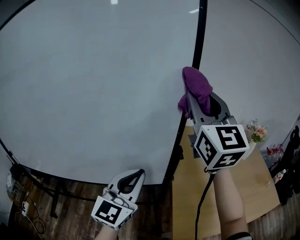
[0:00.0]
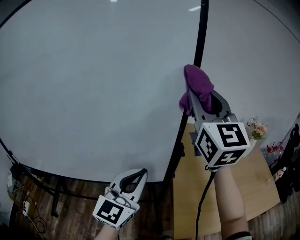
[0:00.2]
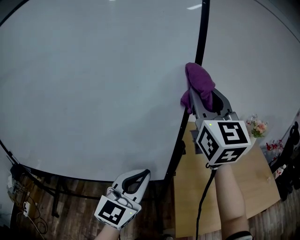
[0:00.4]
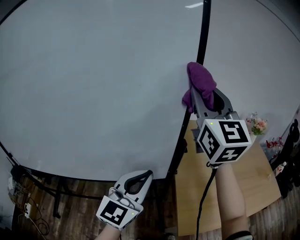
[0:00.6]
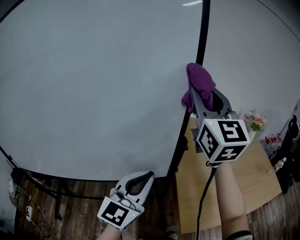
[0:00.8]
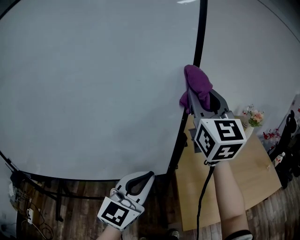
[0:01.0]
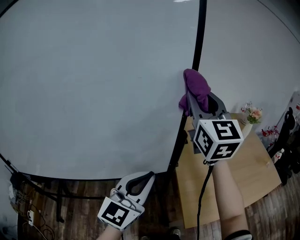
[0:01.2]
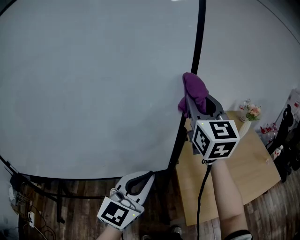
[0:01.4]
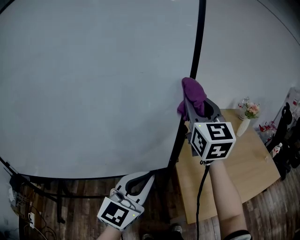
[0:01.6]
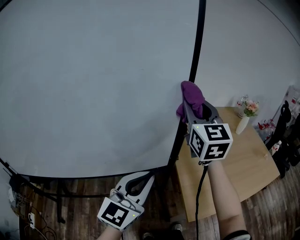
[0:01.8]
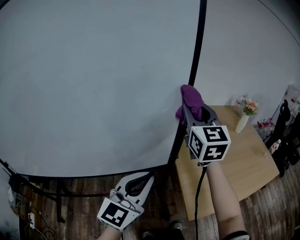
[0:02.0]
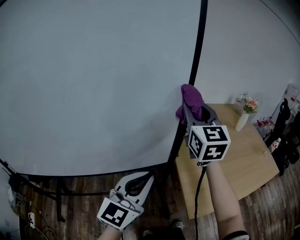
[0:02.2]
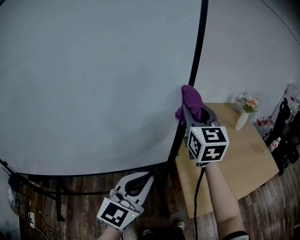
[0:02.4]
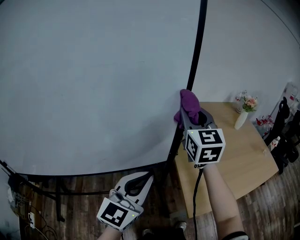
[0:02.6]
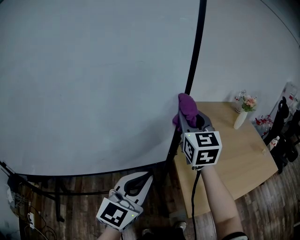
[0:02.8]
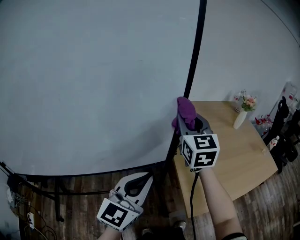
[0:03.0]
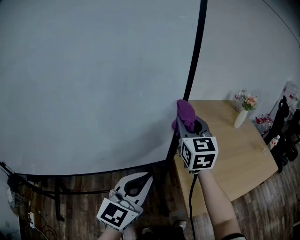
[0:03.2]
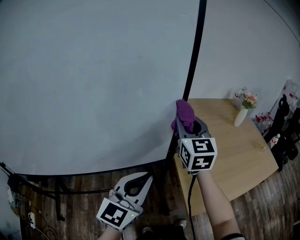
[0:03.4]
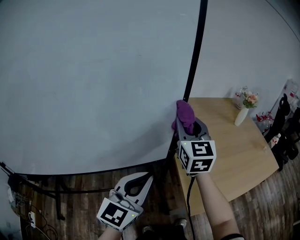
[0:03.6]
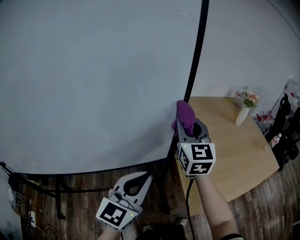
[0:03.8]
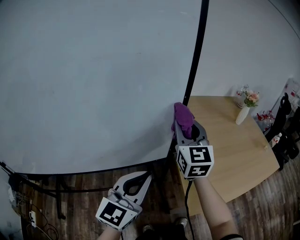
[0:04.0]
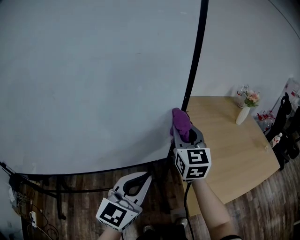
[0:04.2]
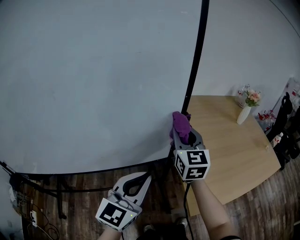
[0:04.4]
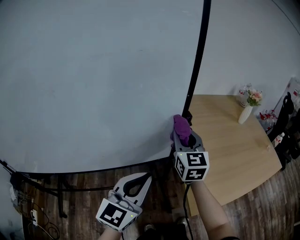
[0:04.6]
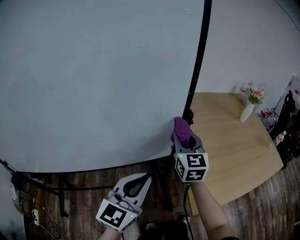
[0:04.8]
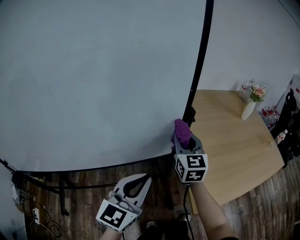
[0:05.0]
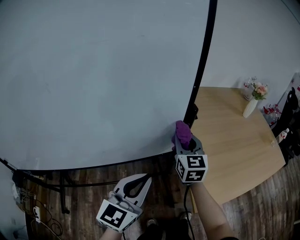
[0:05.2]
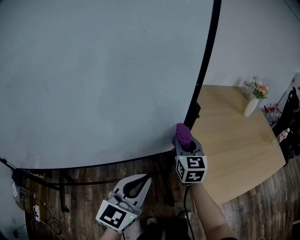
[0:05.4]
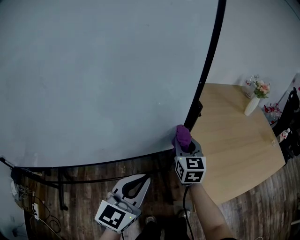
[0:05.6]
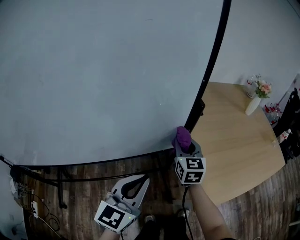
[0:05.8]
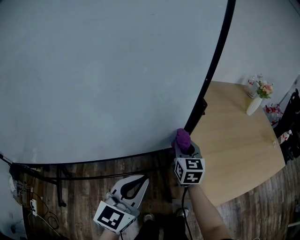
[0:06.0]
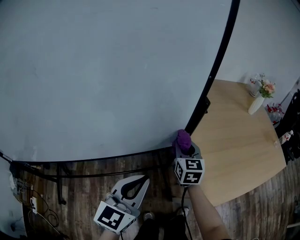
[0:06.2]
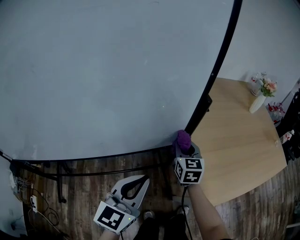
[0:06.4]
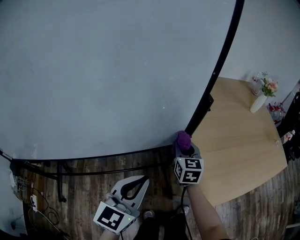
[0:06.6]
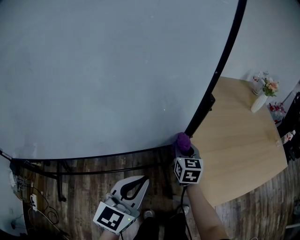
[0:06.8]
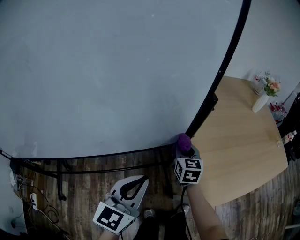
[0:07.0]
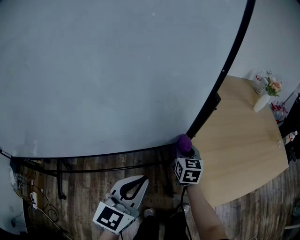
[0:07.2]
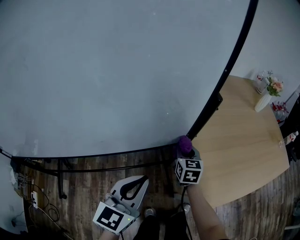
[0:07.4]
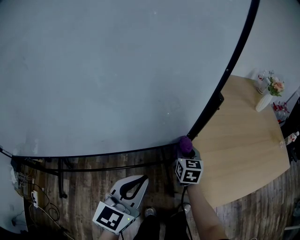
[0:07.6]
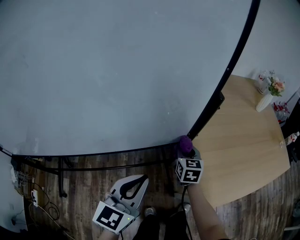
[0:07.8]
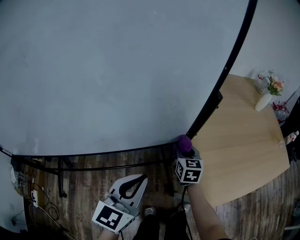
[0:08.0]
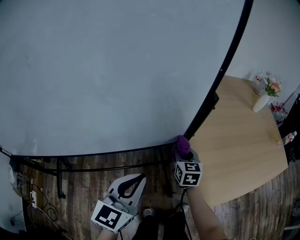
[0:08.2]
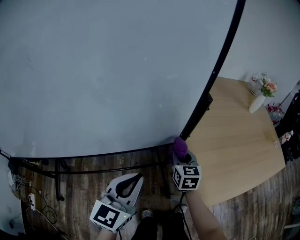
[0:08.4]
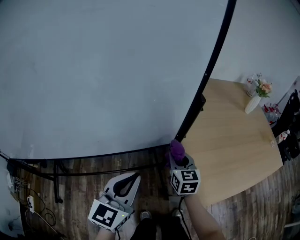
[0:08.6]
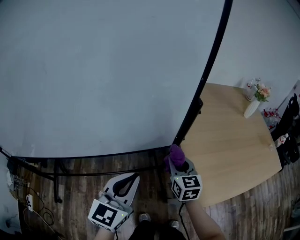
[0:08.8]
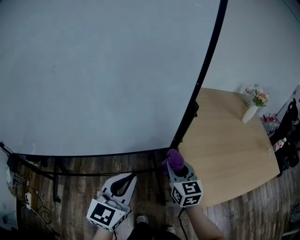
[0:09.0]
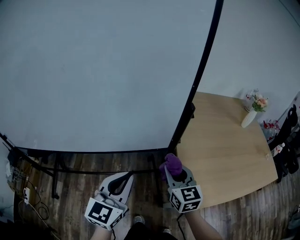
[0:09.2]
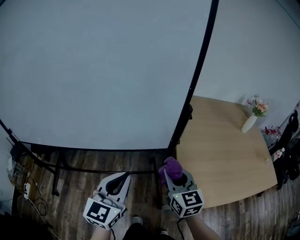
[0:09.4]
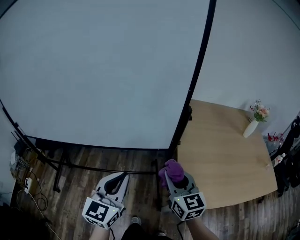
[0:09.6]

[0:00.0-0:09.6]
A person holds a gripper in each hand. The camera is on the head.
0:00.0 to 0:01.6: The left gripper ends up about 5 cm from where it was. The right gripper is displaced downward by approximately 10 cm.
0:01.6 to 0:03.2: The right gripper shifts about 10 cm downward.
0:03.2 to 0:04.8: The right gripper is displaced downward by roughly 10 cm.
0:04.8 to 0:06.4: The left gripper shifts some 5 cm downward. The right gripper is displaced downward by about 15 cm.
0:06.4 to 0:08.0: The right gripper travels downward by some 5 cm.
0:08.0 to 0:09.6: The right gripper goes roughly 30 cm backward and upward, and changes its angle by about 30 degrees, while the left gripper is displaced backward and upward by about 15 cm, and changes its angle by approximately 20 degrees.

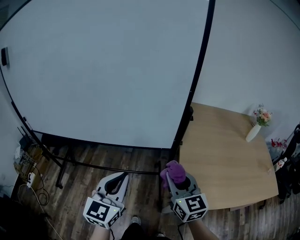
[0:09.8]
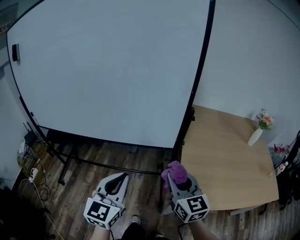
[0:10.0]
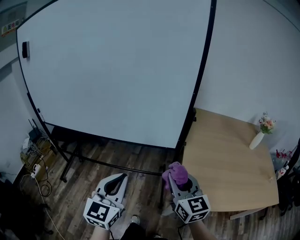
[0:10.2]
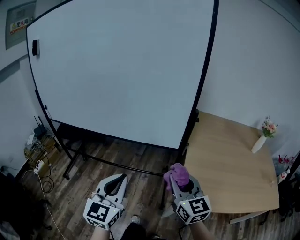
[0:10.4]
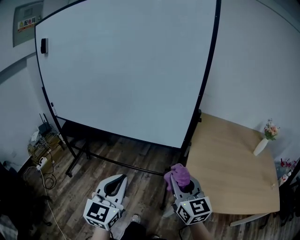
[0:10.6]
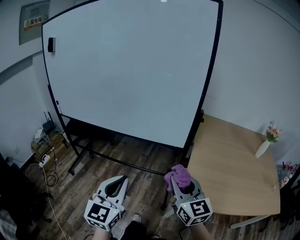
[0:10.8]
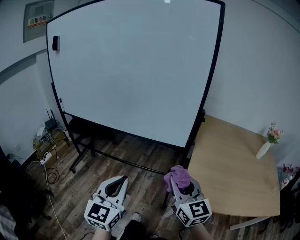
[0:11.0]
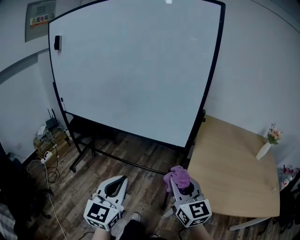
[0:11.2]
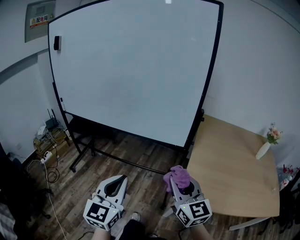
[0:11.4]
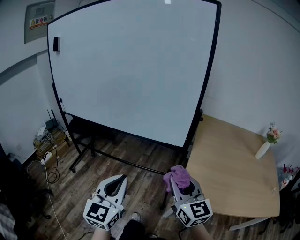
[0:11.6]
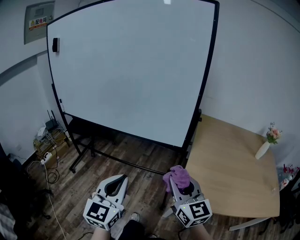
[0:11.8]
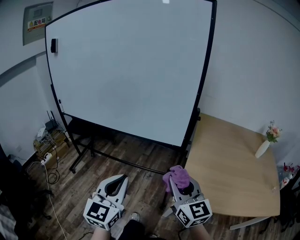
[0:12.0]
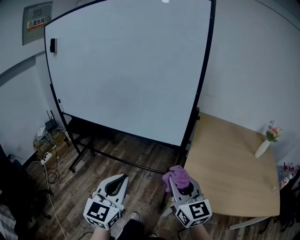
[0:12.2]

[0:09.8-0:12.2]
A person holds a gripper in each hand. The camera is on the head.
0:09.8 to 0:11.0: The grippers both shift backward by about 15 cm.
0:11.0 to 0:12.2: The grippers move only a little.

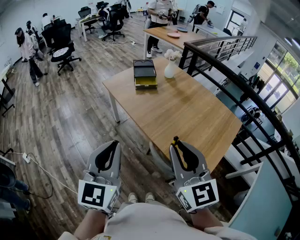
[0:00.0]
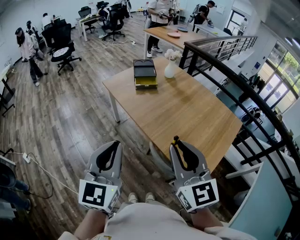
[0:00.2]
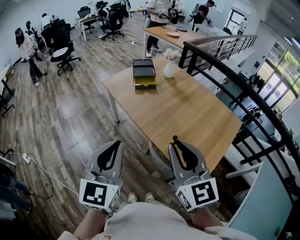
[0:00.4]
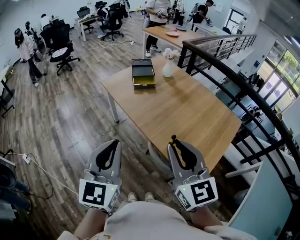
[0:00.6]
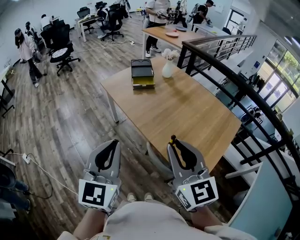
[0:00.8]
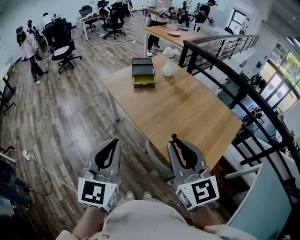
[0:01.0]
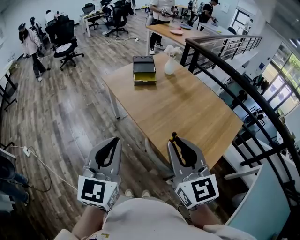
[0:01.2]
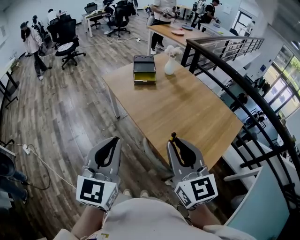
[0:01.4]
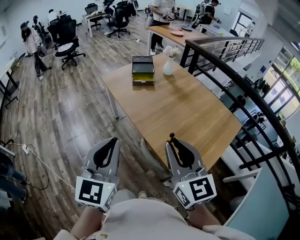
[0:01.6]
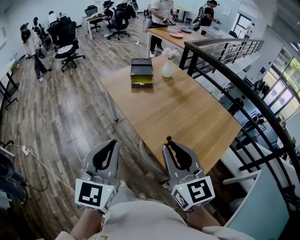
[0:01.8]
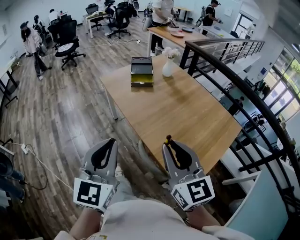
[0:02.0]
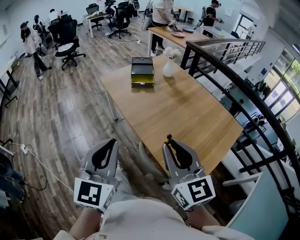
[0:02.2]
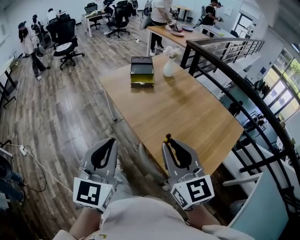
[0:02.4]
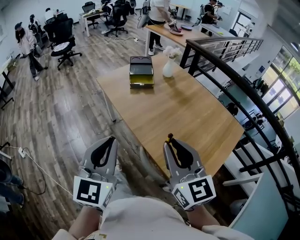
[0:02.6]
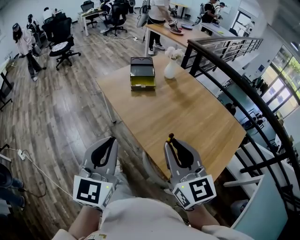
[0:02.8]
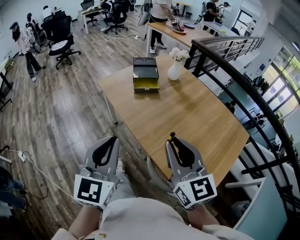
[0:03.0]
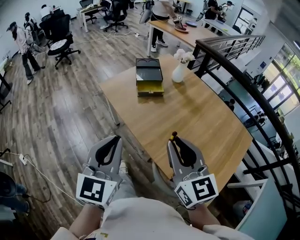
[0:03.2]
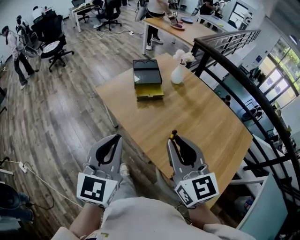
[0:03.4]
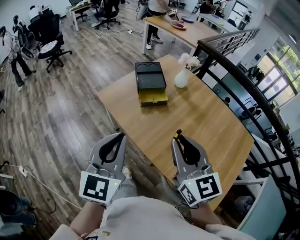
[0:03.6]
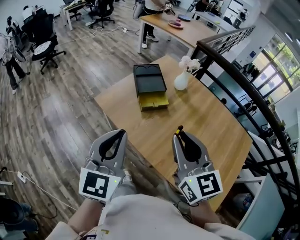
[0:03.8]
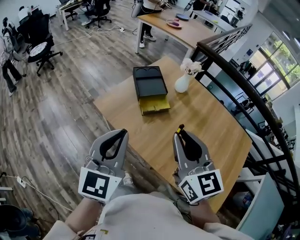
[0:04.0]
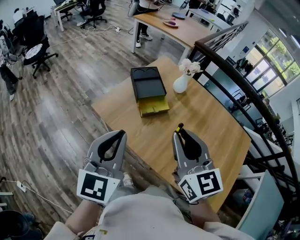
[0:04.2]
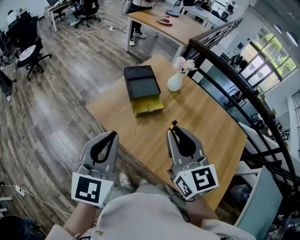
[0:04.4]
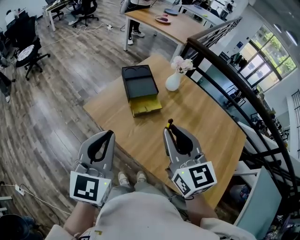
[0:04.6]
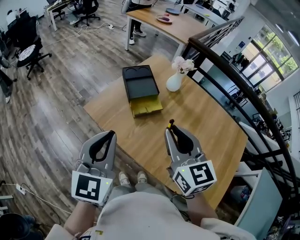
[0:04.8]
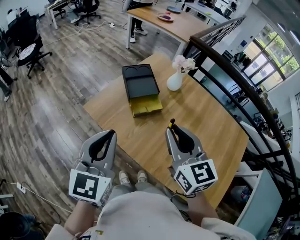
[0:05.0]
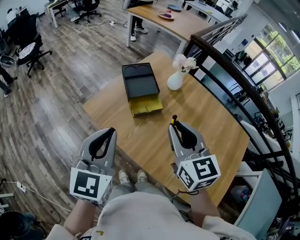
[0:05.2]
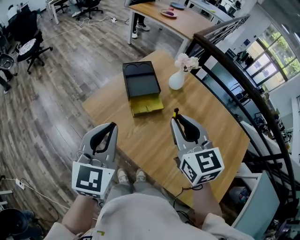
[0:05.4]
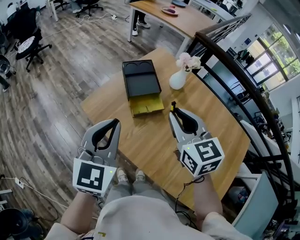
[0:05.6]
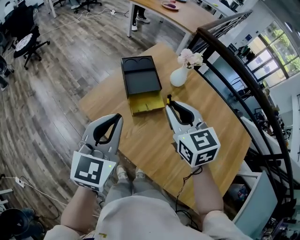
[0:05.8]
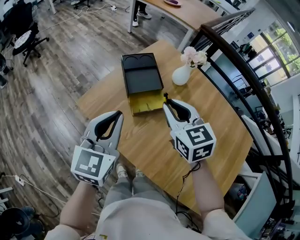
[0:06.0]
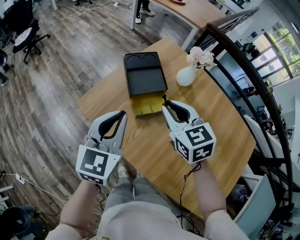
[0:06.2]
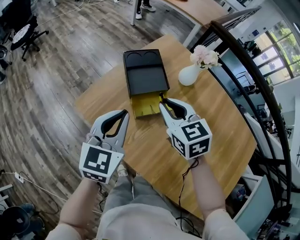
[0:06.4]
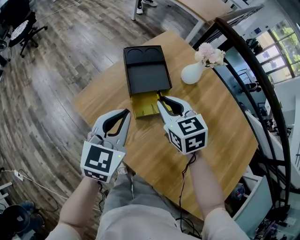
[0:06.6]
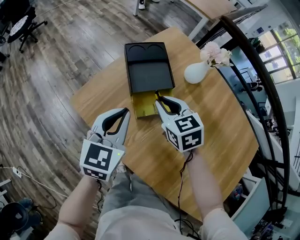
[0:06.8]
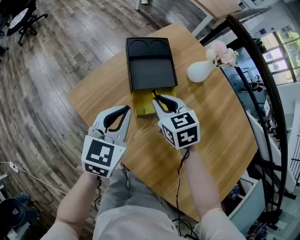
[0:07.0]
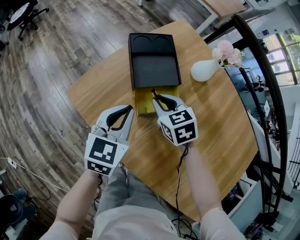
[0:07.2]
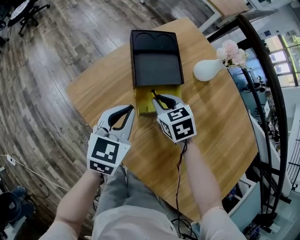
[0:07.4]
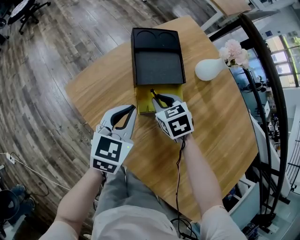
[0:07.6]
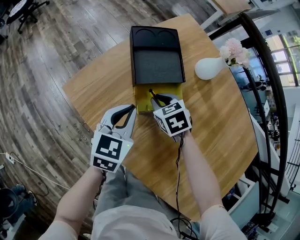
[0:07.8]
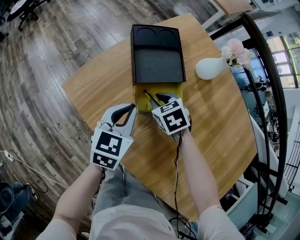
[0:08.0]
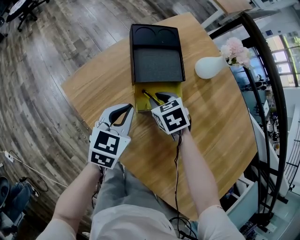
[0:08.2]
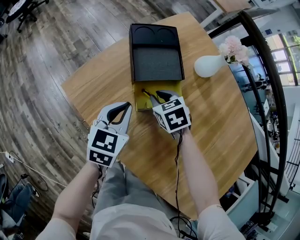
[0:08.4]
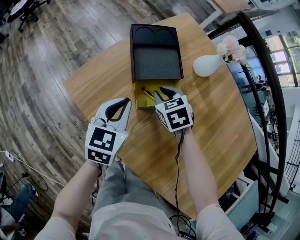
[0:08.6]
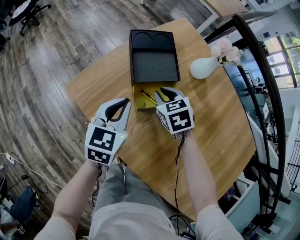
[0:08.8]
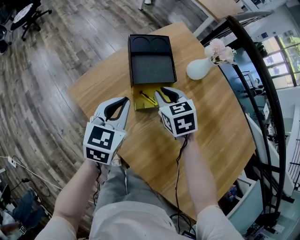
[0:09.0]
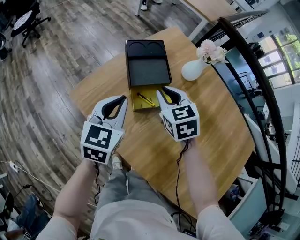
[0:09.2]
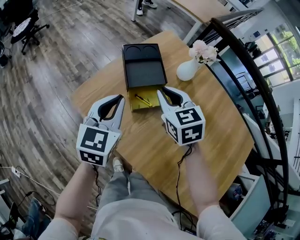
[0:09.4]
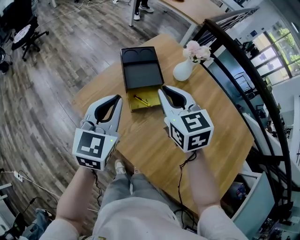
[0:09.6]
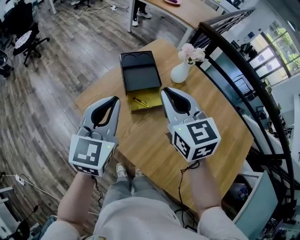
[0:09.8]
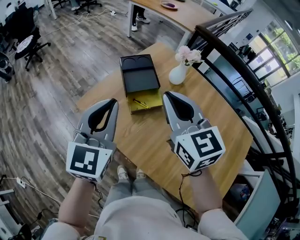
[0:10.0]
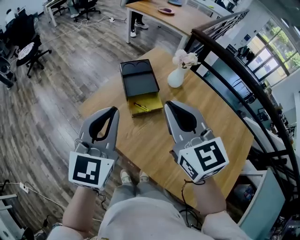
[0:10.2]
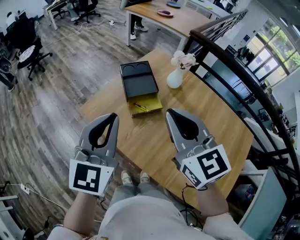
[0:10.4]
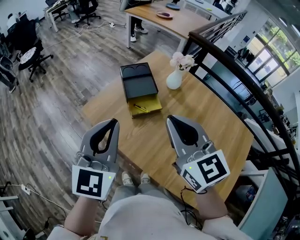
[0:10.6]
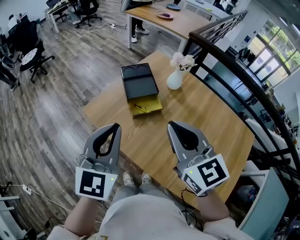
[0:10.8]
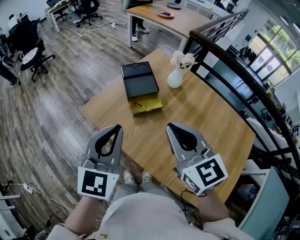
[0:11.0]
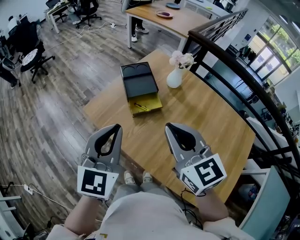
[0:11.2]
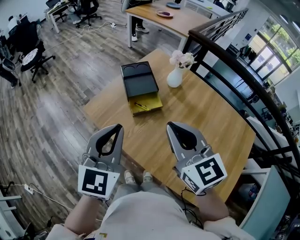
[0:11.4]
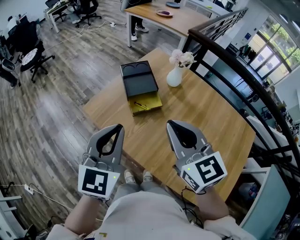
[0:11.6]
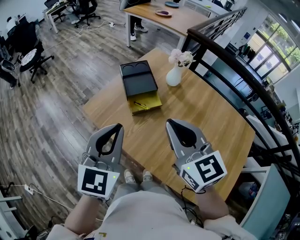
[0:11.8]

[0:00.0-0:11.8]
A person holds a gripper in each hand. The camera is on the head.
0:00.0 to 0:01.4: Both grippers move to the right, about 5 cm.
0:01.4 to 0:03.0: The grippers both shift forward by approximately 20 cm.
0:03.0 to 0:04.4: The two grippers go roughly 35 cm forward and to the left.
0:04.4 to 0:06.0: The two grippers go about 20 cm forward and downward. The right gripper turns by some 20 degrees.
0:06.0 to 0:07.4: The grippers both shift downward and forward by approximately 30 cm. The right gripper changes its angle by approximately 30 degrees.
0:07.4 to 0:08.8: The grippers make only small movements.
0:08.8 to 0:10.4: The grippers both shift upward and backward by approximately 40 cm. The right gripper tips its fingers upward by about 40 degrees. The left gripper changes its angle by approximately 20 degrees.
0:10.4 to 0:11.8: The left gripper changes place by some 5 cm, while the right gripper moves about 5 cm.
